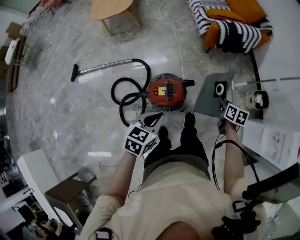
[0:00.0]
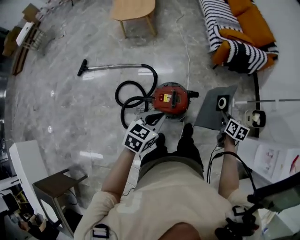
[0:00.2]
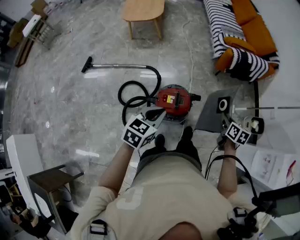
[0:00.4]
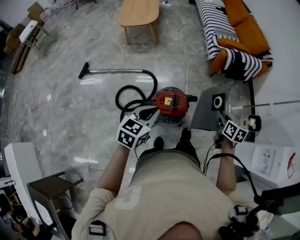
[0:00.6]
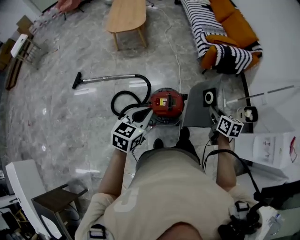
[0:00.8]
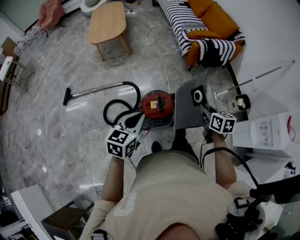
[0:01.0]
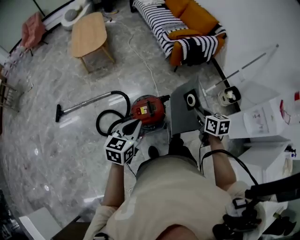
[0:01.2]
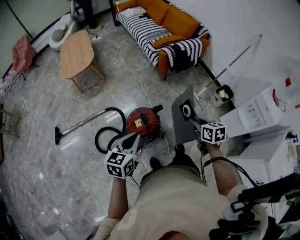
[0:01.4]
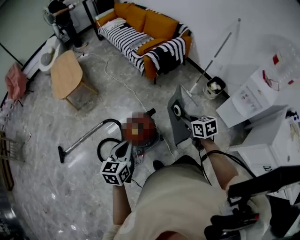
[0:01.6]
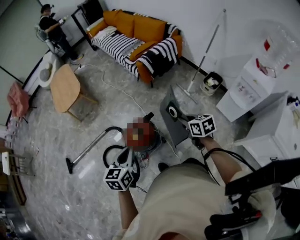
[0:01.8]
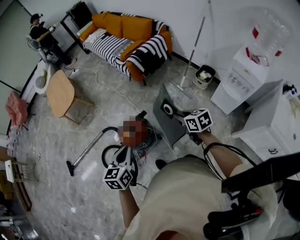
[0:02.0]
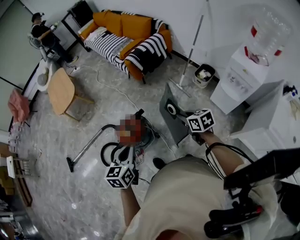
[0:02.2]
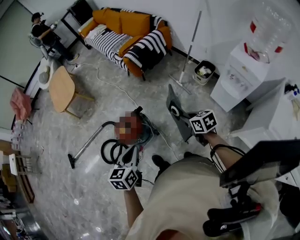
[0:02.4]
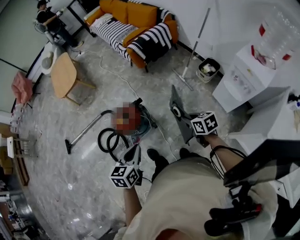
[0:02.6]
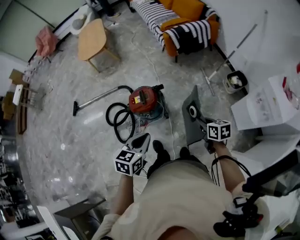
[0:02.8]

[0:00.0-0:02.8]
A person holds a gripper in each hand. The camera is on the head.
0:00.0 to 0:01.4: The right gripper is displaced backward and upward by about 20 cm. The left gripper is displaced upward and backward by some 10 cm.
0:01.4 to 0:02.8: Both grippers move to the right and backward, roughly 25 cm.

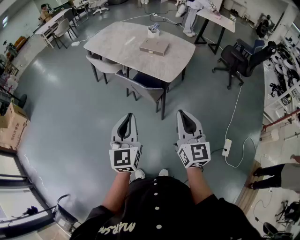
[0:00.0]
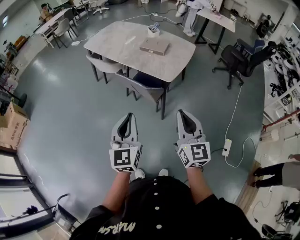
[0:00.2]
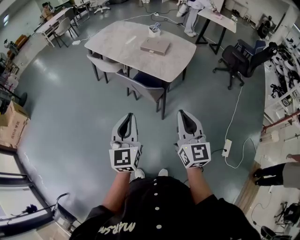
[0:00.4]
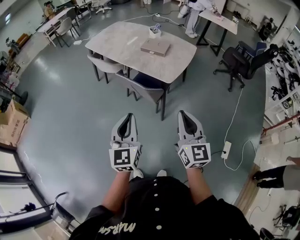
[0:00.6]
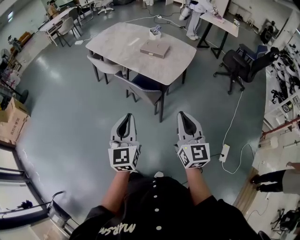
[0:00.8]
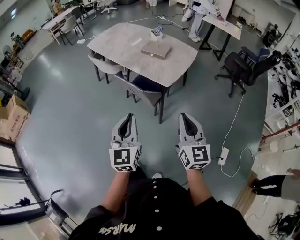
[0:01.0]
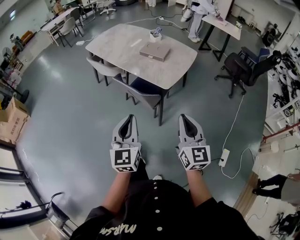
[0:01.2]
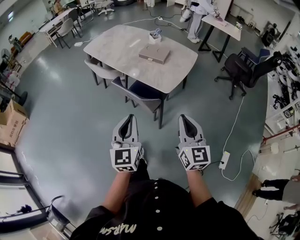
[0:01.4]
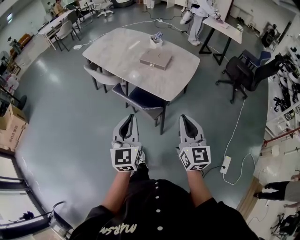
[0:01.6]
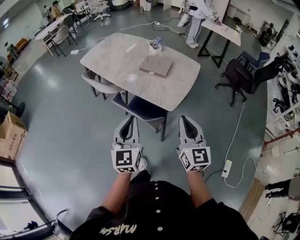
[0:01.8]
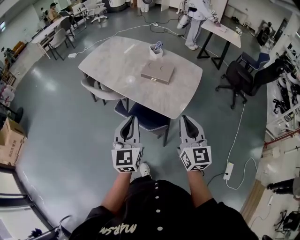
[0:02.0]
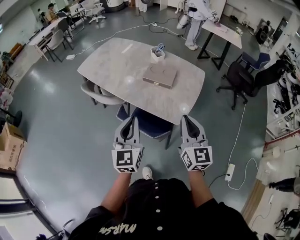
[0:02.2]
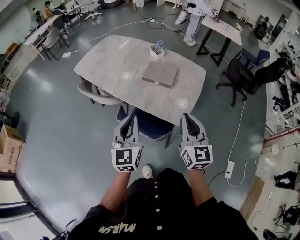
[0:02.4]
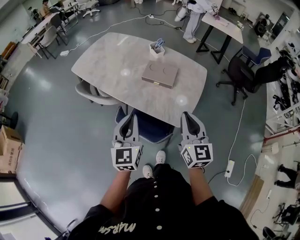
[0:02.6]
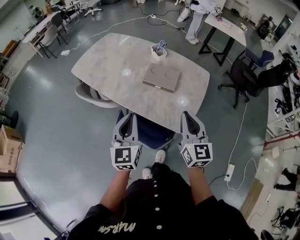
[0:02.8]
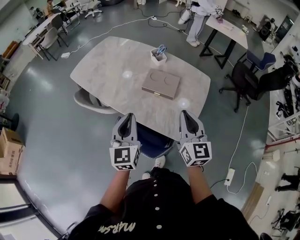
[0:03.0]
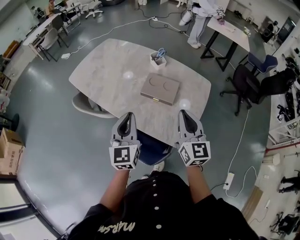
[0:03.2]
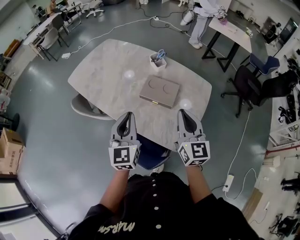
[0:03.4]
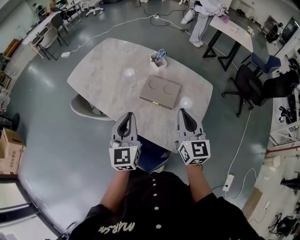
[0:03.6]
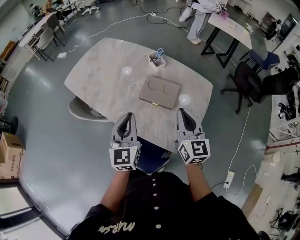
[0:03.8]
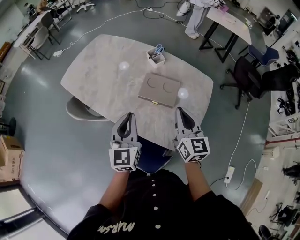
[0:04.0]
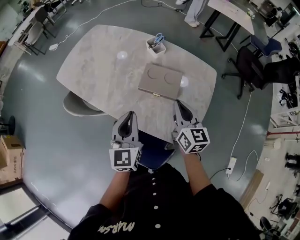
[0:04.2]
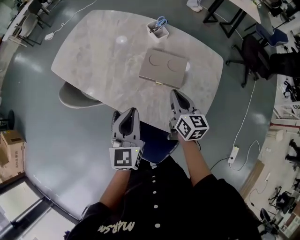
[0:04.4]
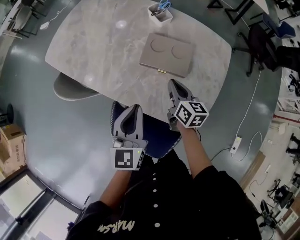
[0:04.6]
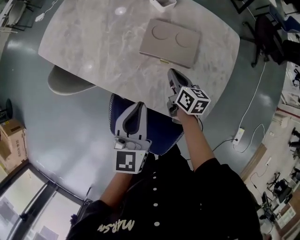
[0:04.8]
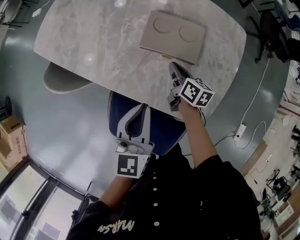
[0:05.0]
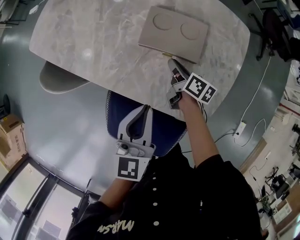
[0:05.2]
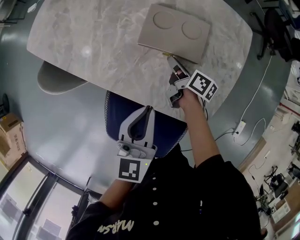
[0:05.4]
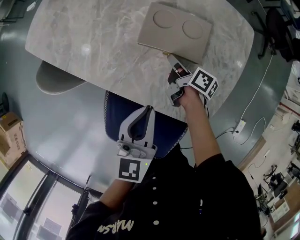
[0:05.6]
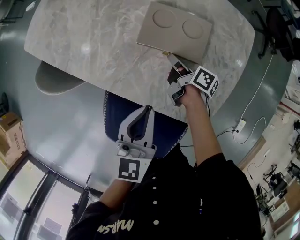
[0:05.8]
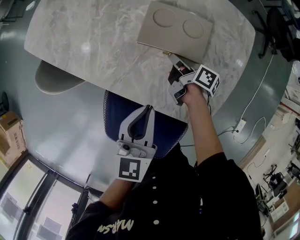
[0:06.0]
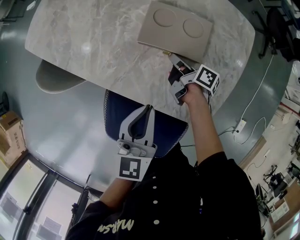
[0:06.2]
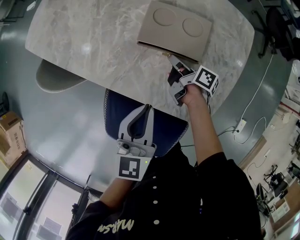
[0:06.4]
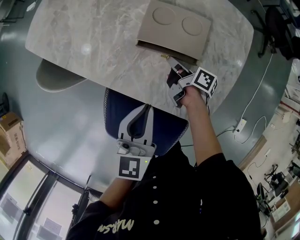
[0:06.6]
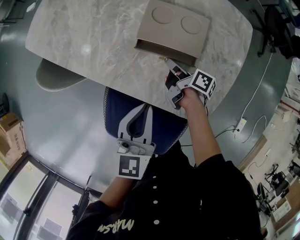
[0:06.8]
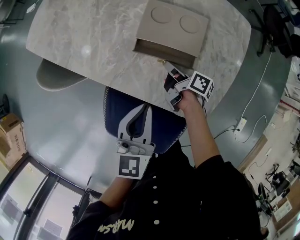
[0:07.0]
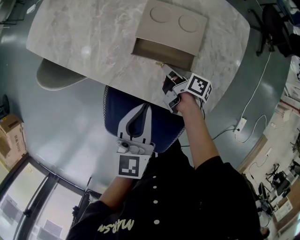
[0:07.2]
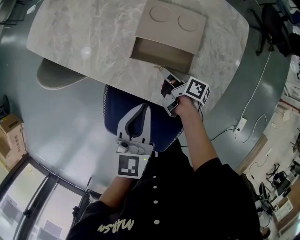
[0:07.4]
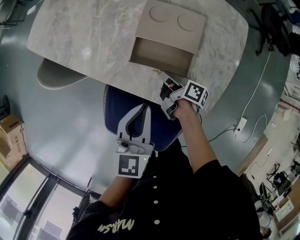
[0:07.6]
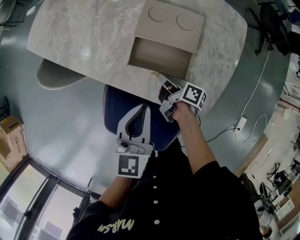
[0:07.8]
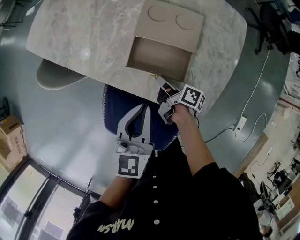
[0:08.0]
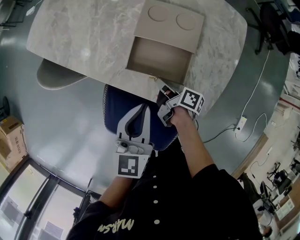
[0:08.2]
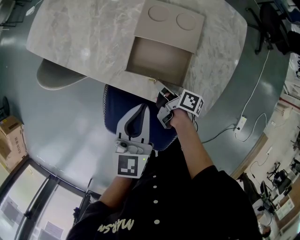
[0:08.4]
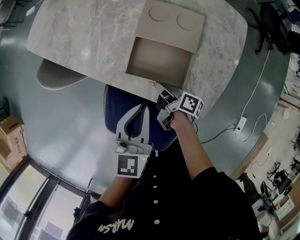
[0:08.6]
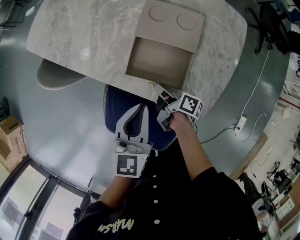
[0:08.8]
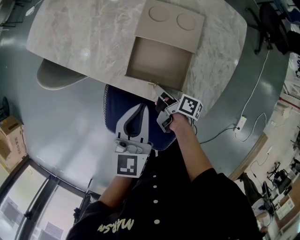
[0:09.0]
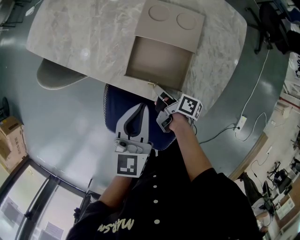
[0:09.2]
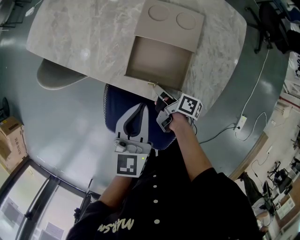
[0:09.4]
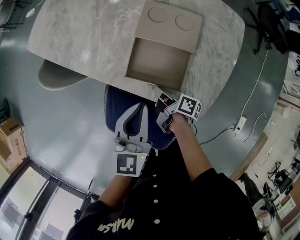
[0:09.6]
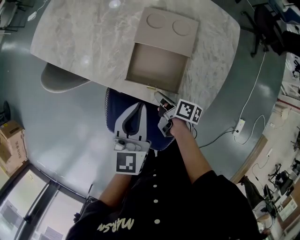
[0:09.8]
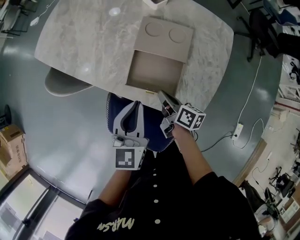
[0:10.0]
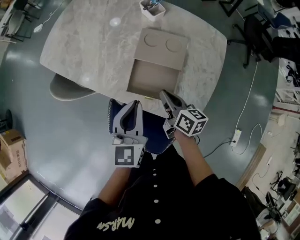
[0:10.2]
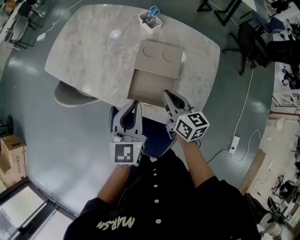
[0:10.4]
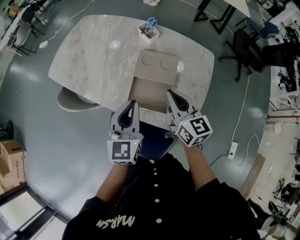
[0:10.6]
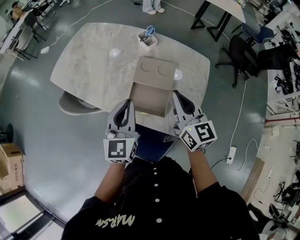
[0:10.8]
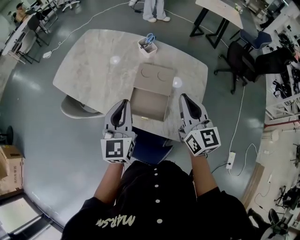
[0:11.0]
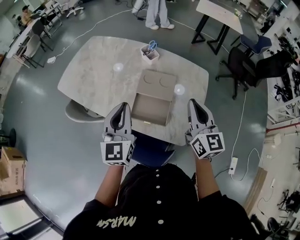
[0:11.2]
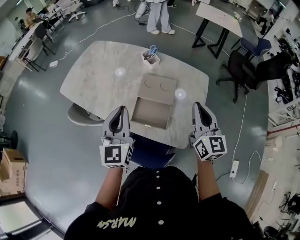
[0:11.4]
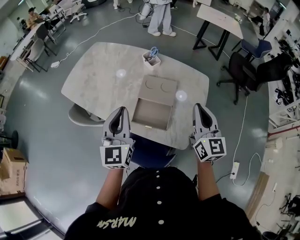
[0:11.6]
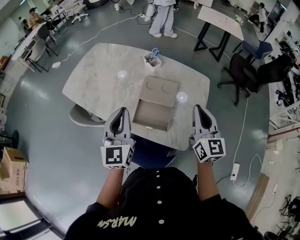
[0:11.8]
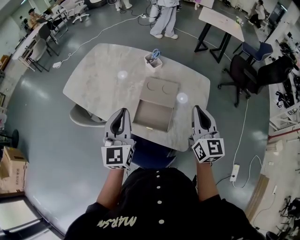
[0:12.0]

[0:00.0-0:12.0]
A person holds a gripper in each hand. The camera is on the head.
0:00.0 to 0:01.6: Both grippers travel together forward, about 15 cm.
0:01.6 to 0:03.0: Both grippers travel together forward, some 35 cm.
0:03.0 to 0:04.4: The left gripper goes approximately 15 cm forward and downward. The right gripper is displaced forward and downward by some 25 cm, and rotates some 30 degrees.
0:04.4 to 0:06.0: The left gripper goes approximately 10 cm downward. Meanwhile the right gripper moves downward, about 20 cm, and rotates around the line of its fingers by approximately 60 degrees, clockwise from behind.
0:06.0 to 0:07.6: The right gripper shifts some 10 cm backward.
0:07.6 to 0:09.0: The right gripper is displaced backward by about 5 cm.
0:09.0 to 0:10.4: The right gripper is displaced upward by about 20 cm, and rolls counterclockwise, seen from behind, by some 60 degrees, while the left gripper travels upward by about 10 cm.
0:10.4 to 0:12.0: The left gripper is displaced upward by roughly 10 cm. The right gripper is displaced upward and to the right by some 20 cm, and turns by about 30 degrees.

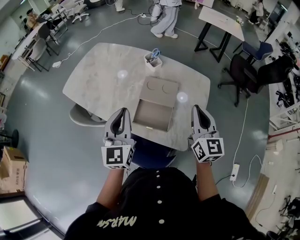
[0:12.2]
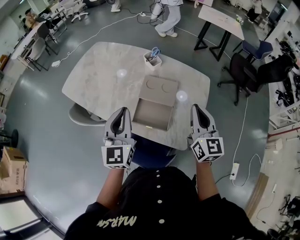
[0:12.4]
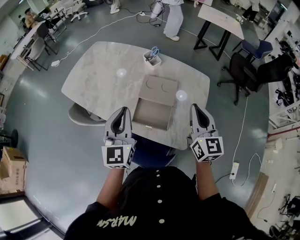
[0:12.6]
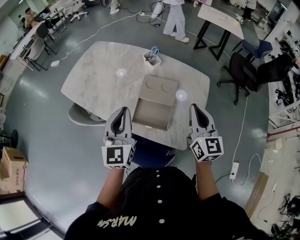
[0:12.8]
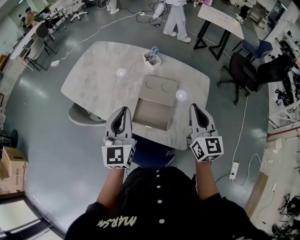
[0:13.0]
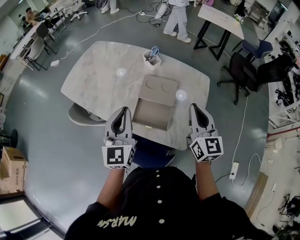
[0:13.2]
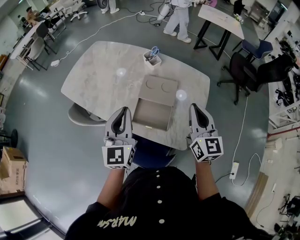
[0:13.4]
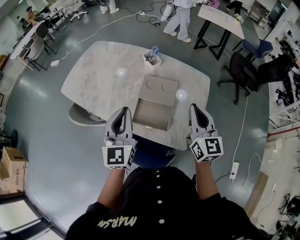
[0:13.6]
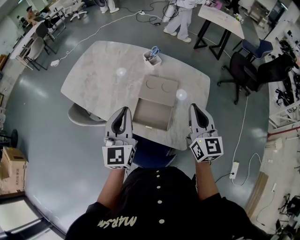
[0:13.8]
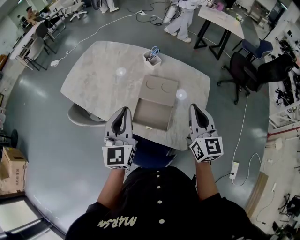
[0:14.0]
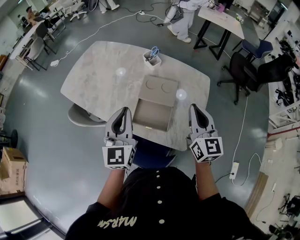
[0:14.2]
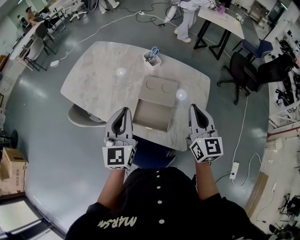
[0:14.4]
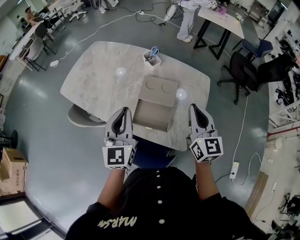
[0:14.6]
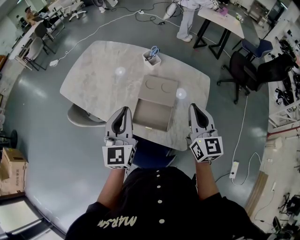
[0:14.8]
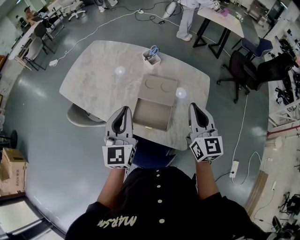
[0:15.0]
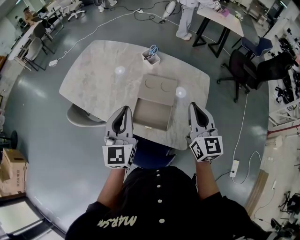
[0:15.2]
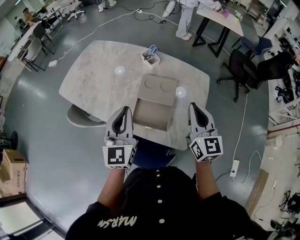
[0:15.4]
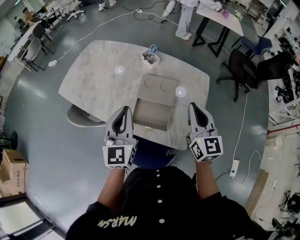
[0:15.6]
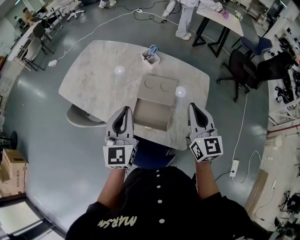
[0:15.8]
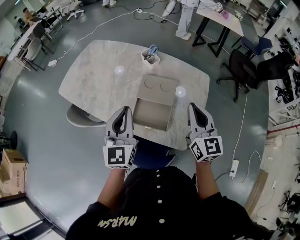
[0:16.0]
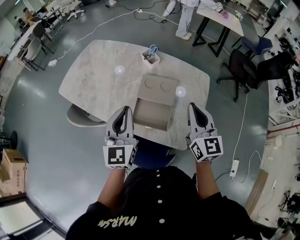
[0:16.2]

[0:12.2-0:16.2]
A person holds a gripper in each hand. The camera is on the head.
0:12.2 to 0:13.6: Both grippers stay about where they are.
0:13.6 to 0:14.8: Neither gripper changes place.
0:14.8 to 0:16.2: Both grippers stay put.

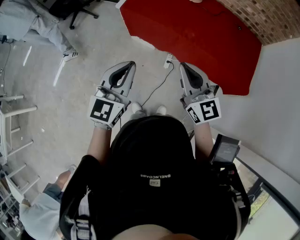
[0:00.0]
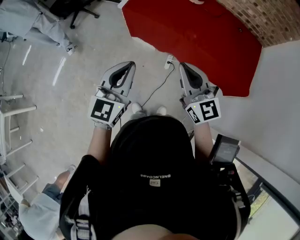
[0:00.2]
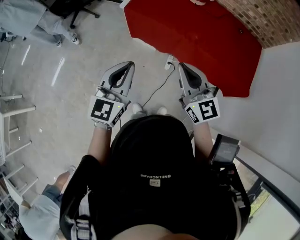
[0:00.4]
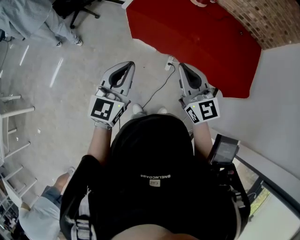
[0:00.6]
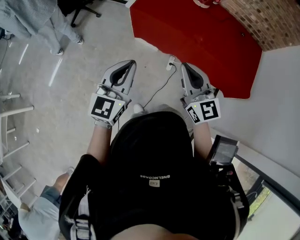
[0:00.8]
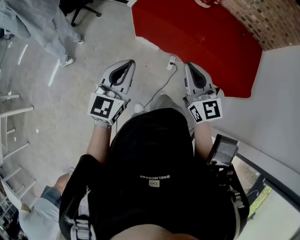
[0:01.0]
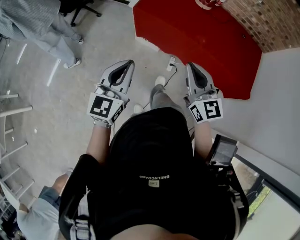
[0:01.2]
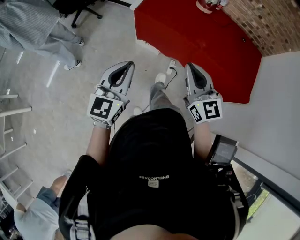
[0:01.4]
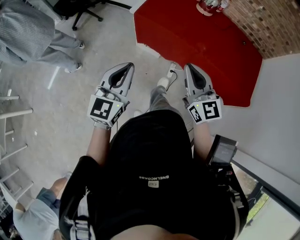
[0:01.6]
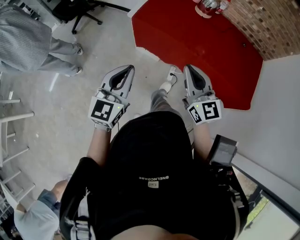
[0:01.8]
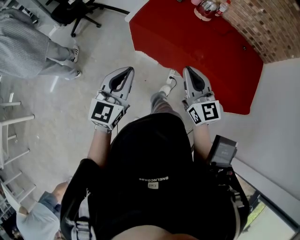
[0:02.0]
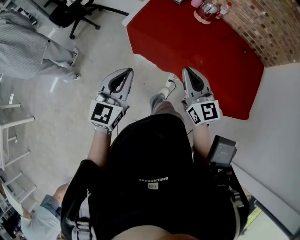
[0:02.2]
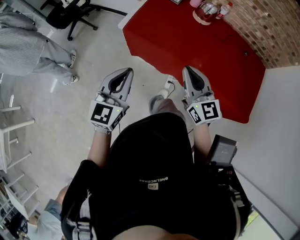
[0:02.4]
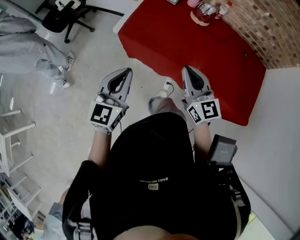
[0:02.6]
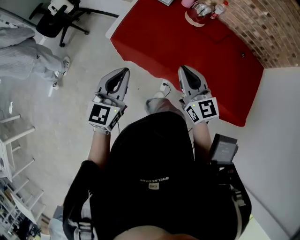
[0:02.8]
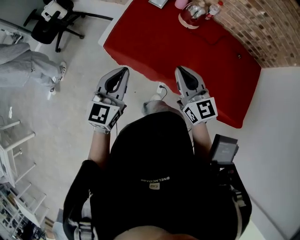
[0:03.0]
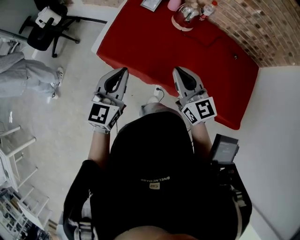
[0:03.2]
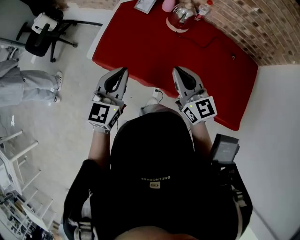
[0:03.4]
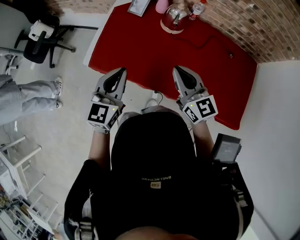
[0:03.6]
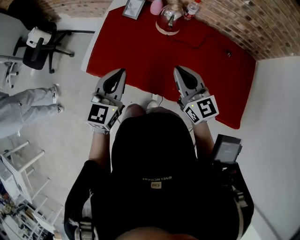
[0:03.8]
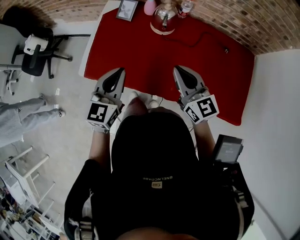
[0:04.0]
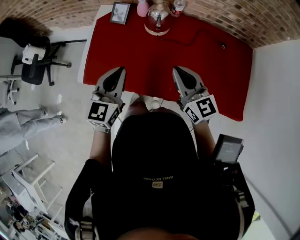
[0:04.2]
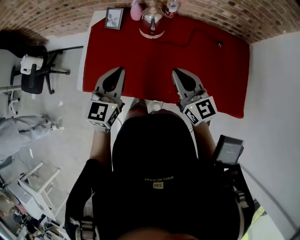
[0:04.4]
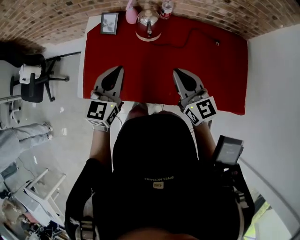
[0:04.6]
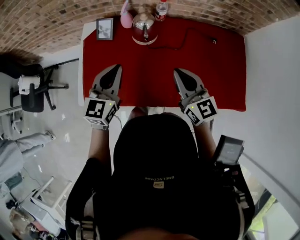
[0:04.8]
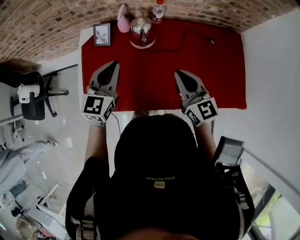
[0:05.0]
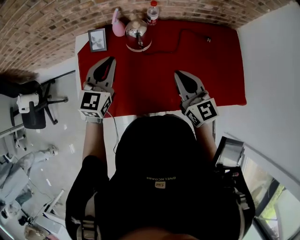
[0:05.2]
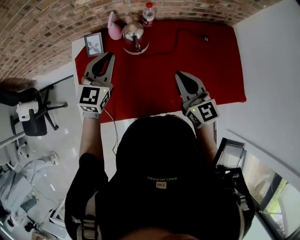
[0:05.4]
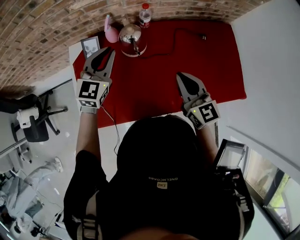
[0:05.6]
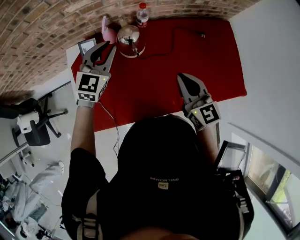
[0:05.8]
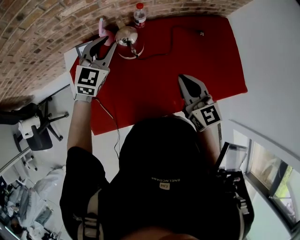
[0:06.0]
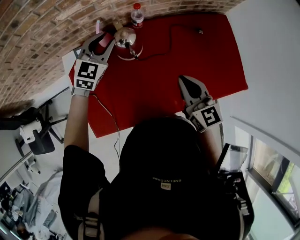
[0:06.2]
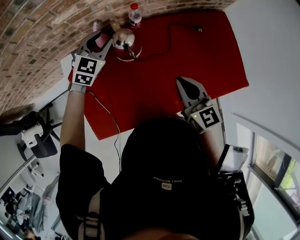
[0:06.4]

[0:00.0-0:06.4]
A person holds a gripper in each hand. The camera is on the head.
0:00.0 to 0:01.6: The two grippers go about 10 cm to the left.
0:01.6 to 0:03.2: The grippers both shift forward and to the right by approximately 35 cm.
0:03.2 to 0:04.8: The right gripper travels to the right and forward by some 15 cm, and rotates roughly 20 degrees. Meanwhile the left gripper heads forward and to the right, covering some 25 cm, and changes its angle by approximately 20 degrees.
0:04.8 to 0:06.4: The left gripper shifts some 25 cm forward, changes its angle by approximately 40 degrees, and opens its fingers, while the right gripper changes place by some 5 cm, and turns by some 20 degrees.
